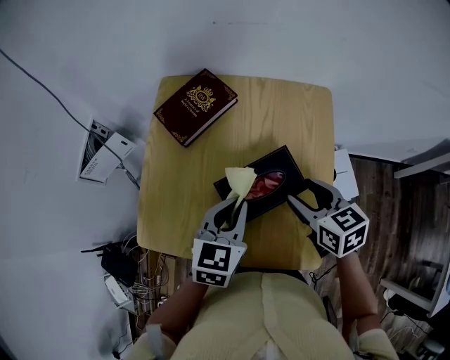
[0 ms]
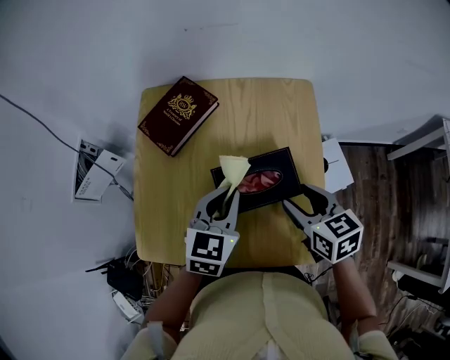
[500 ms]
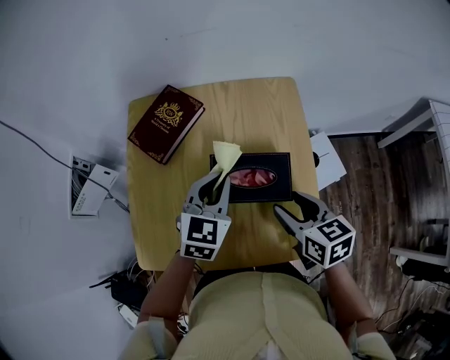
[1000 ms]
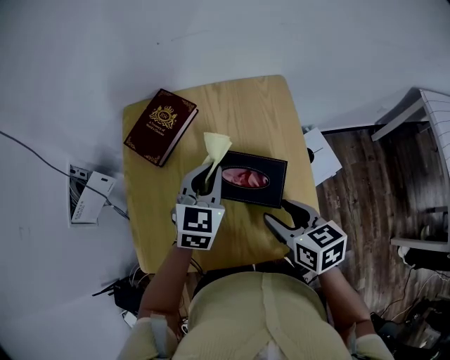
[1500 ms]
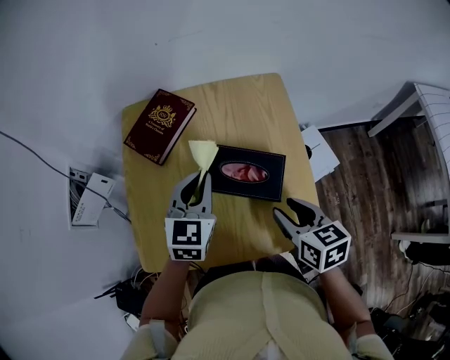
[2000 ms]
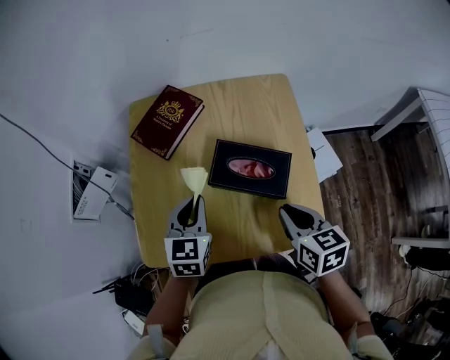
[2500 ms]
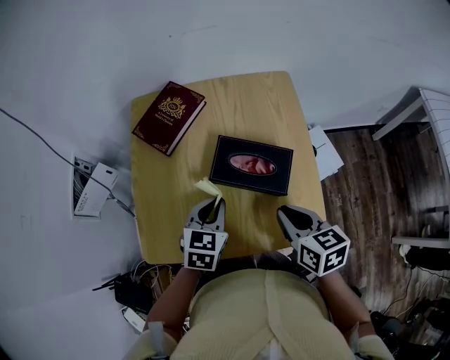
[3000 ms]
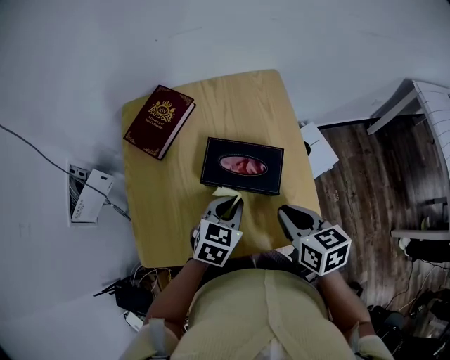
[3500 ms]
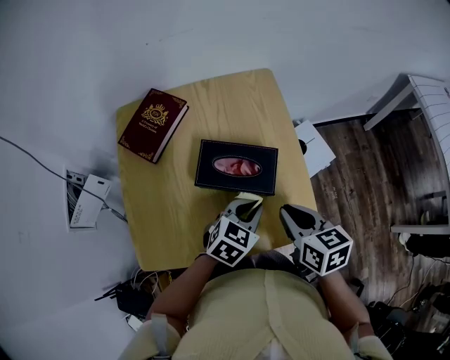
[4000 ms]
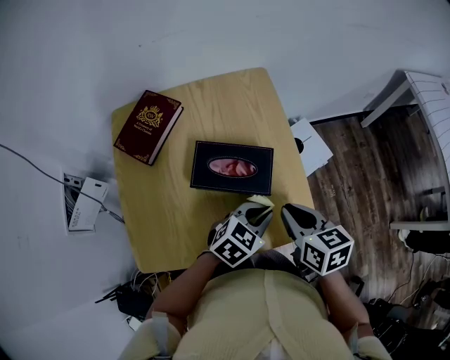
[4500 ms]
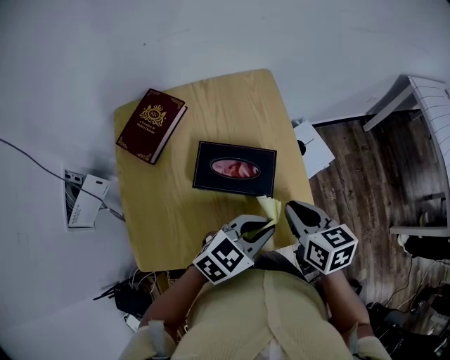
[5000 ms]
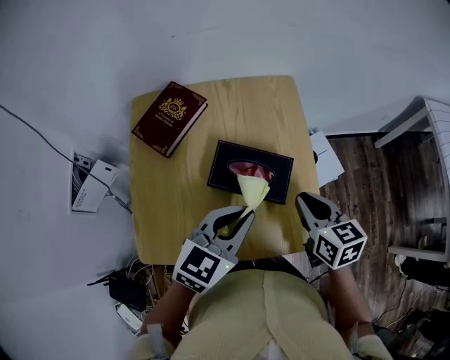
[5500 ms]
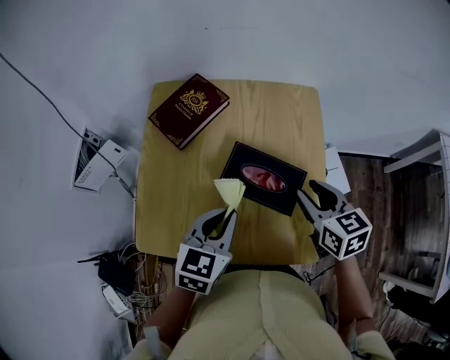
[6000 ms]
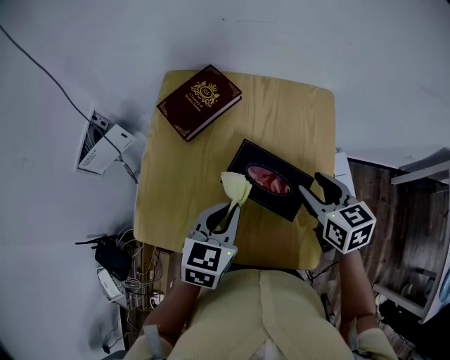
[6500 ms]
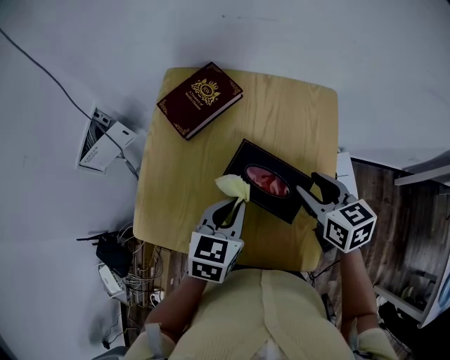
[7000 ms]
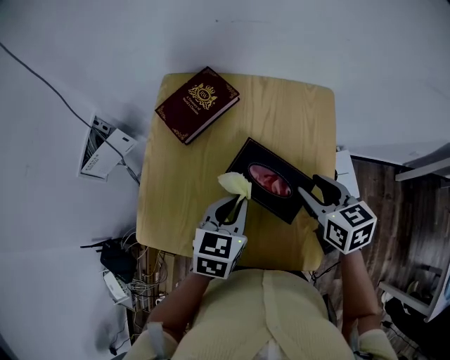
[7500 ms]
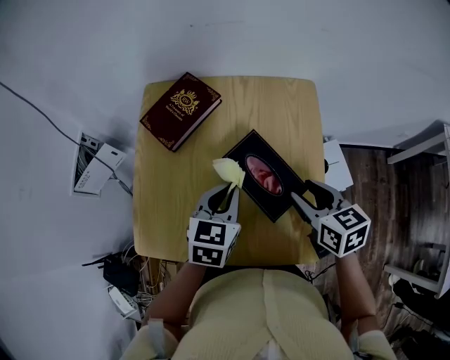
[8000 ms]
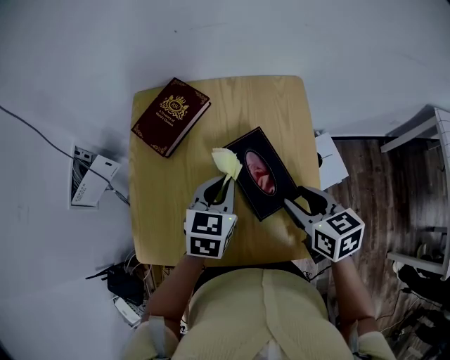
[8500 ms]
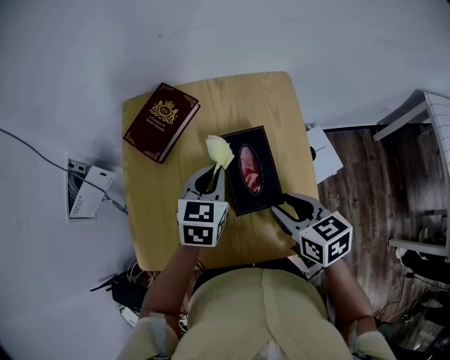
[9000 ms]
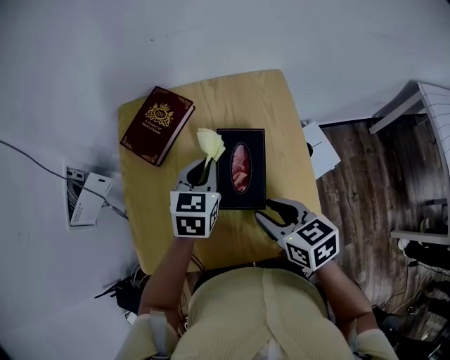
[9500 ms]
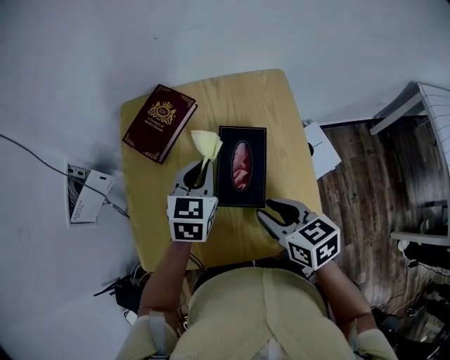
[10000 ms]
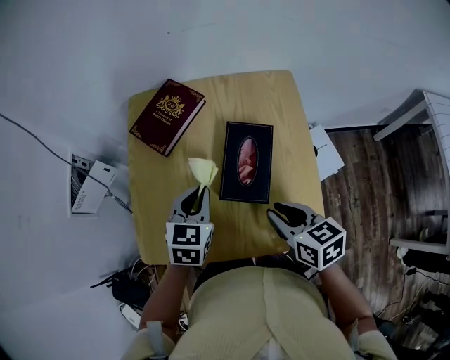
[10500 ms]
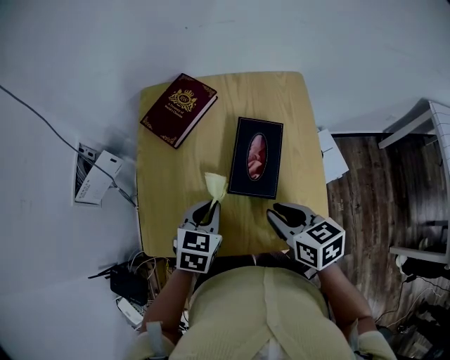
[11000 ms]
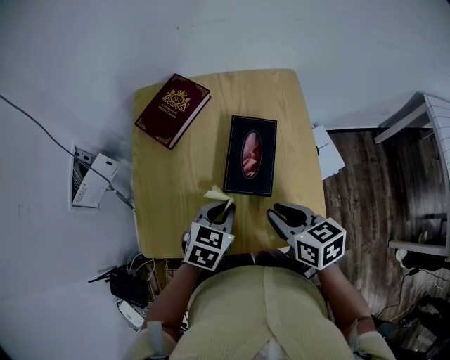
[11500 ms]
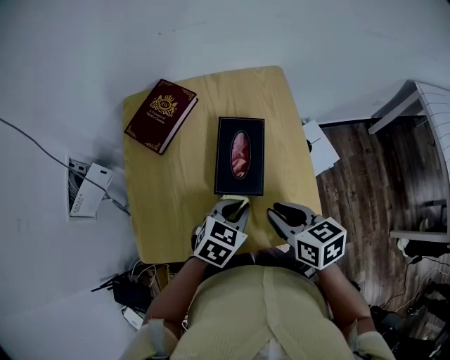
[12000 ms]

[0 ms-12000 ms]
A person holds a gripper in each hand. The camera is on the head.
0 ms to 2000 ms: The left gripper goes approximately 5 cm forward. The right gripper goes roughly 10 cm backward, and turns by about 20 degrees.
2000 ms to 4000 ms: The right gripper closes up; the left gripper is displaced to the right, backward and downward by roughly 20 cm, and turns by some 40 degrees.
4000 ms to 6000 ms: The right gripper shifts by roughly 10 cm, changes its angle by roughly 20 degrees, and opens up; the left gripper moves some 15 cm, and changes its angle by about 30 degrees.
6000 ms to 8000 ms: The left gripper is displaced forward by some 5 cm.
8000 ms to 10000 ms: The left gripper is displaced forward by roughly 5 cm, while the right gripper heads to the left and backward, covering some 10 cm.
10000 ms to 12000 ms: The left gripper is displaced backward, downward and to the right by approximately 20 cm, and swivels roughly 30 degrees.

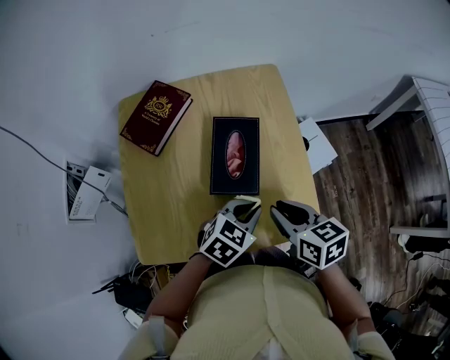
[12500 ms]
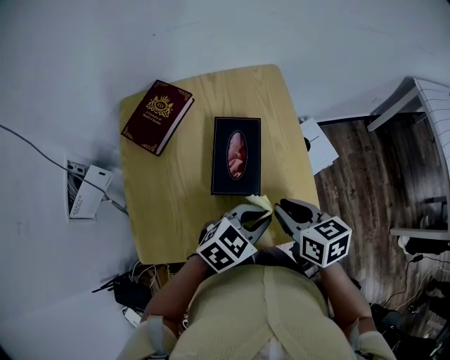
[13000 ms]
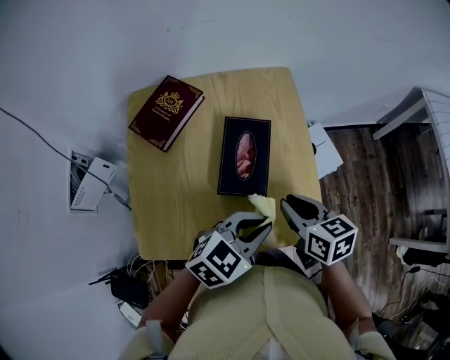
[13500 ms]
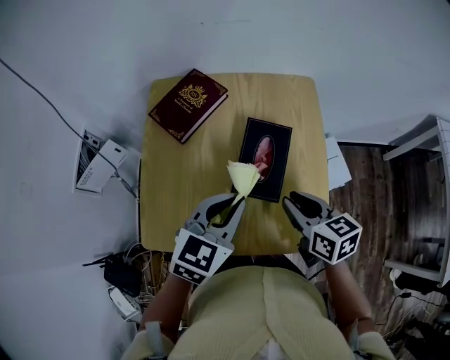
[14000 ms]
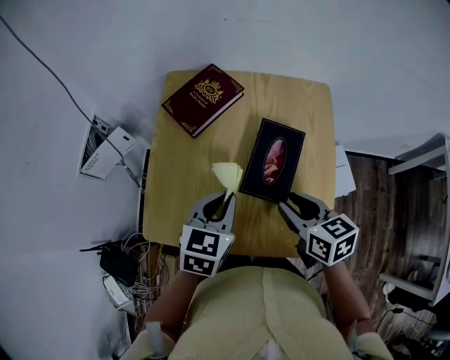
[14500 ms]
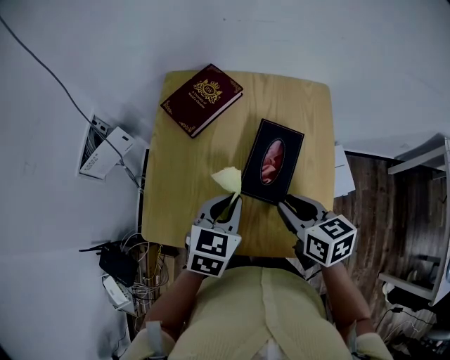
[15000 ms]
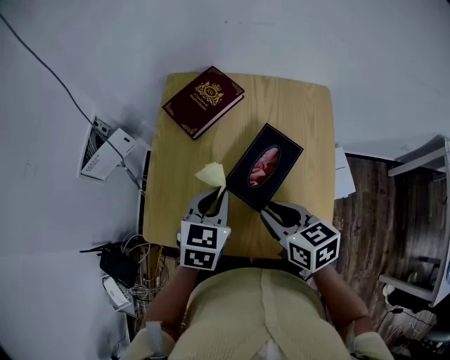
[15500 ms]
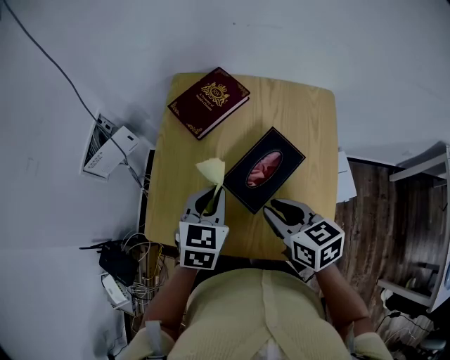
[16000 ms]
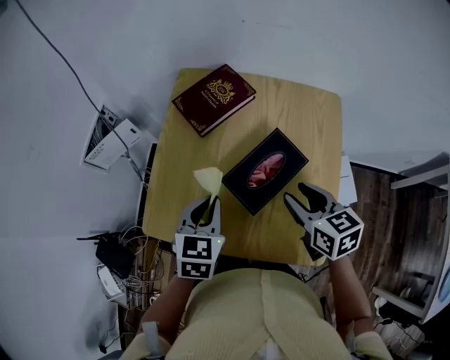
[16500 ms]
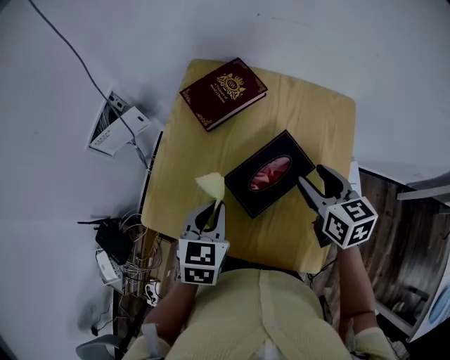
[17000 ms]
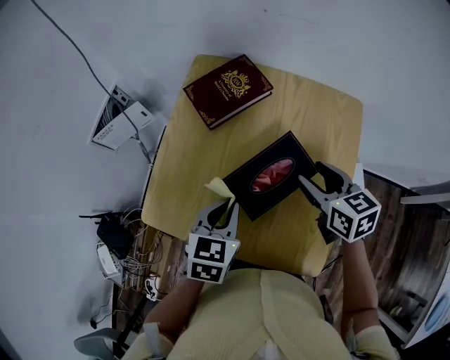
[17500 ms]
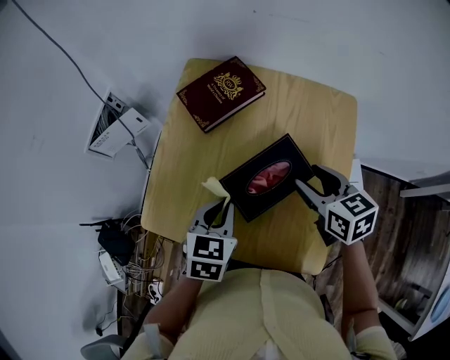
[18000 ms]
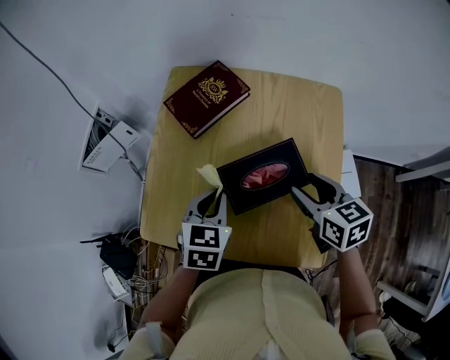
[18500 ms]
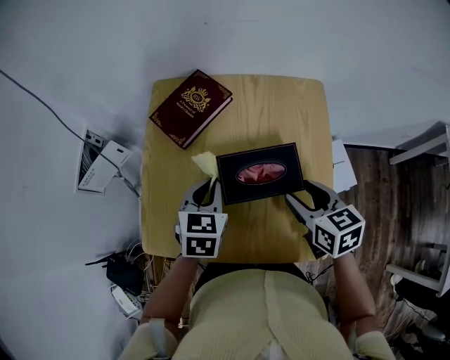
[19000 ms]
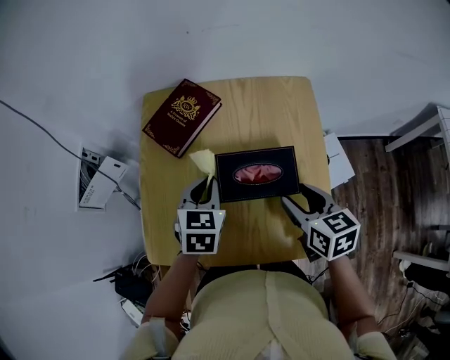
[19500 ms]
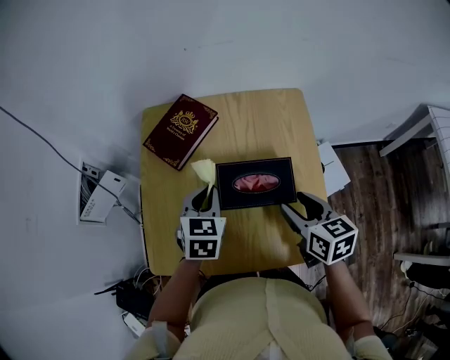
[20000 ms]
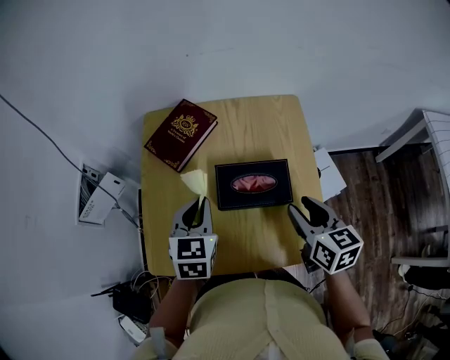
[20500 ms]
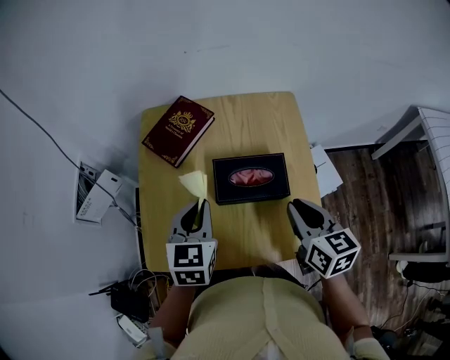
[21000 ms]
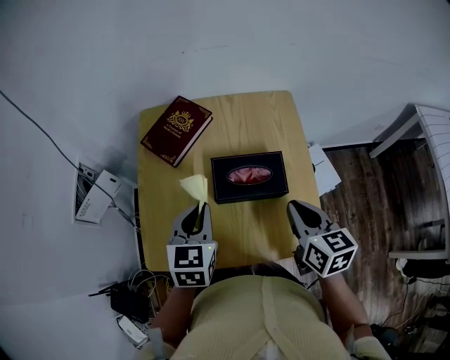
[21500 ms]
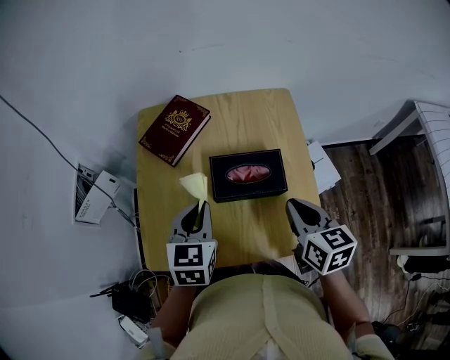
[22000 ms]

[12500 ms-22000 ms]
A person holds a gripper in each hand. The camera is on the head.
12500 ms to 14500 ms: The left gripper ends up roughly 15 cm from where it was, and rotates roughly 40 degrees. Meanwhile the right gripper ends up about 5 cm from where it was.
14500 ms to 16500 ms: The left gripper shifts about 5 cm to the left.
16500 ms to 18000 ms: The right gripper travels forward by some 5 cm.
18000 ms to 20000 ms: The left gripper goes approximately 10 cm forward, while the right gripper shifts roughly 10 cm backward, and changes its angle by approximately 30 degrees.
20000 ms to 22000 ms: The right gripper moves roughly 5 cm, and closes its fingers. The left gripper travels backward by about 5 cm.

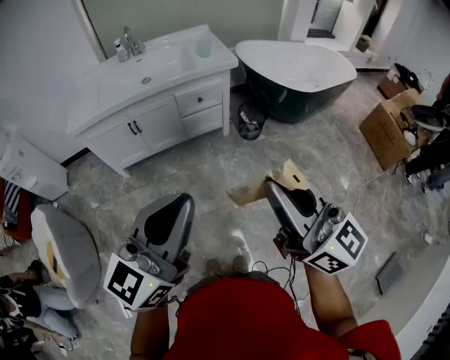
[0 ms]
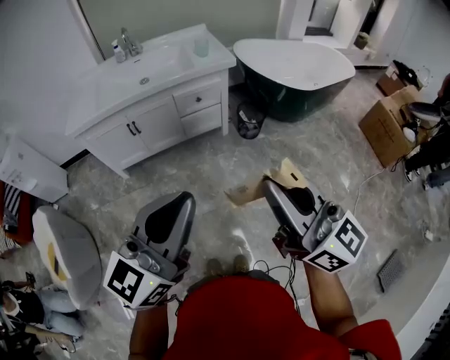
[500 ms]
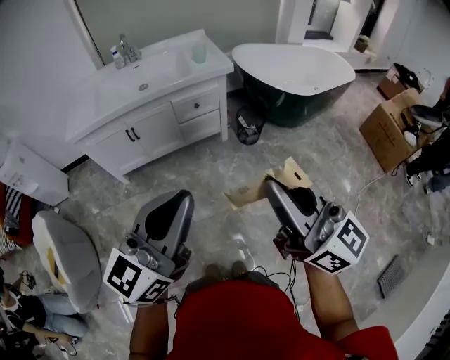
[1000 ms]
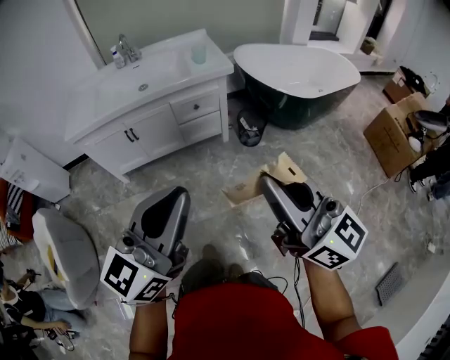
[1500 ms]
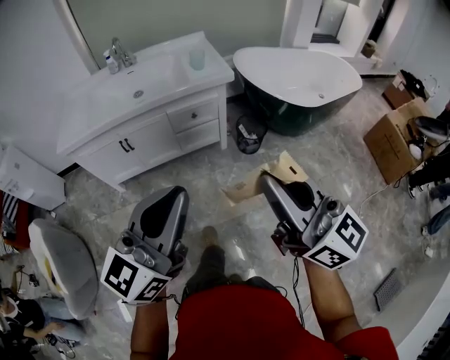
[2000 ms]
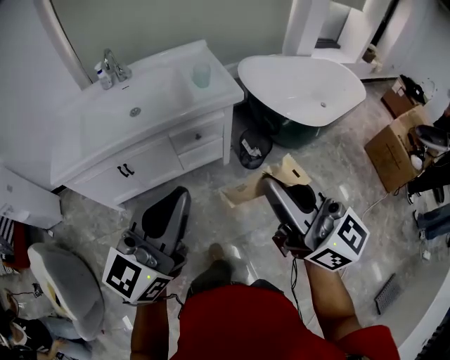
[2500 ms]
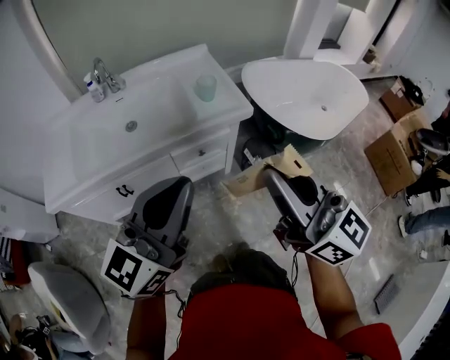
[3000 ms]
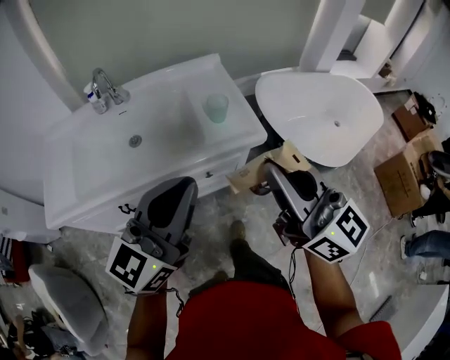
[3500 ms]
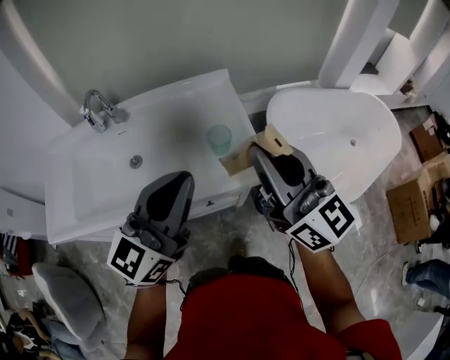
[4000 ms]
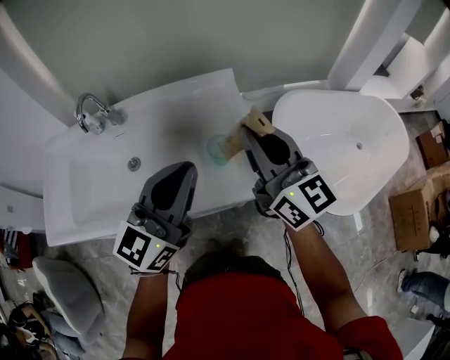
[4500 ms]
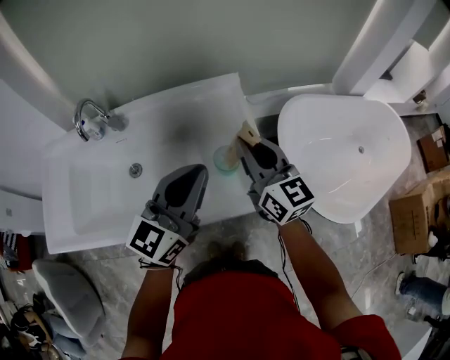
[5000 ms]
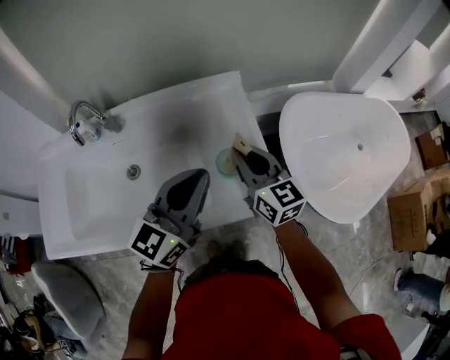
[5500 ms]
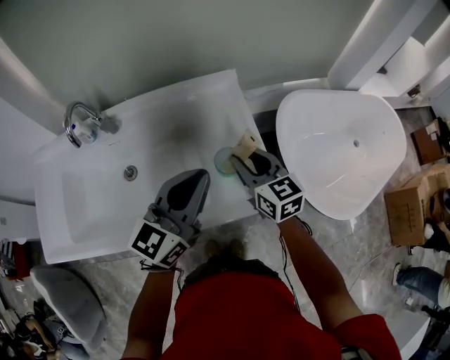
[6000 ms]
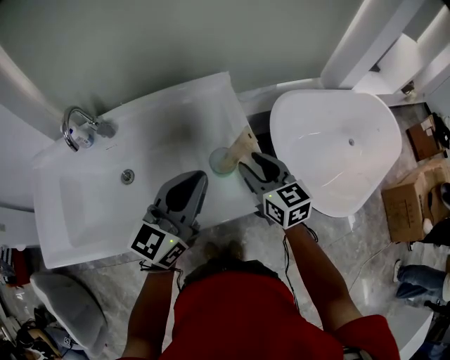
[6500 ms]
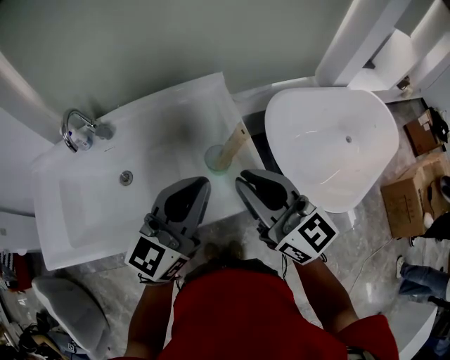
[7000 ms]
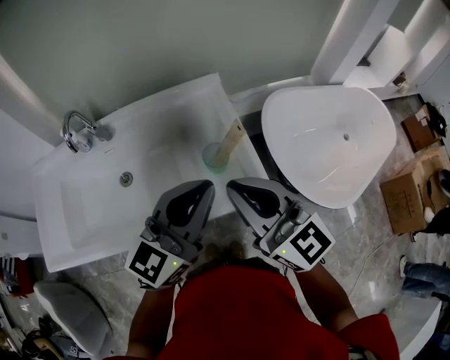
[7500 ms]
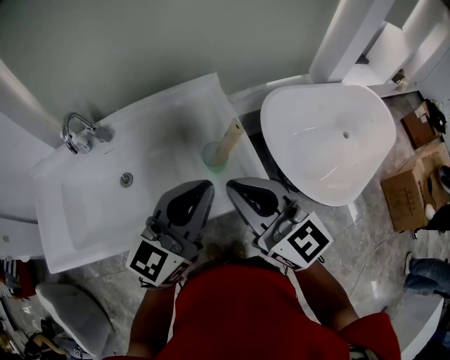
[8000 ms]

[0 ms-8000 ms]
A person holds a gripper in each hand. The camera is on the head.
0 ms to 2000 ms: The grippers both shift forward by approximately 10 cm.
2000 ms to 4000 ms: Both grippers are carried forward, about 60 cm.
4000 ms to 6000 ms: The left gripper heads forward and downward, covering some 15 cm. Meanwhile the right gripper travels downward and forward by about 30 cm, and tips its fingers downward by roughly 30 degrees.
6000 ms to 8000 ms: The right gripper moves upward and backward, approximately 20 cm, and swivels about 20 degrees; the left gripper shifts some 10 cm backward and upward.
